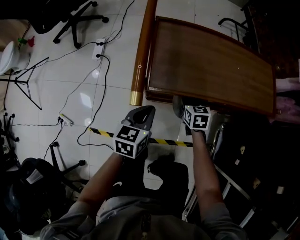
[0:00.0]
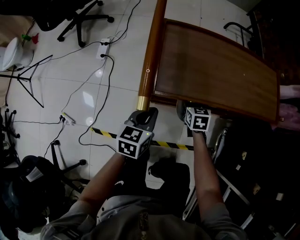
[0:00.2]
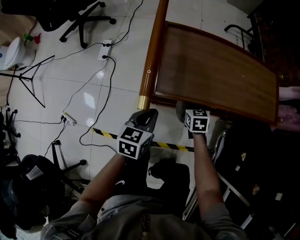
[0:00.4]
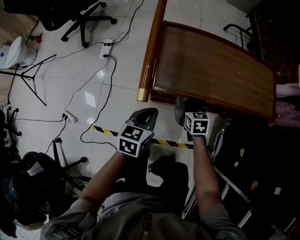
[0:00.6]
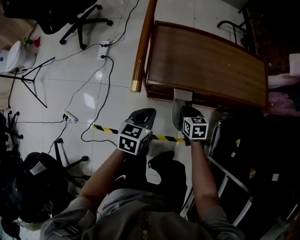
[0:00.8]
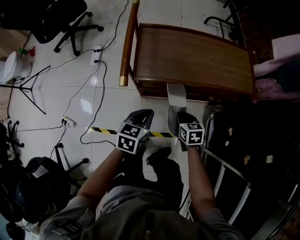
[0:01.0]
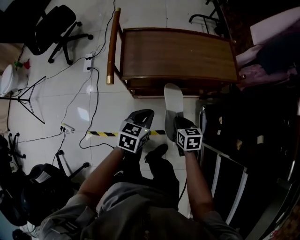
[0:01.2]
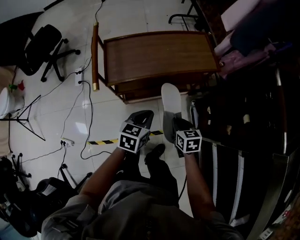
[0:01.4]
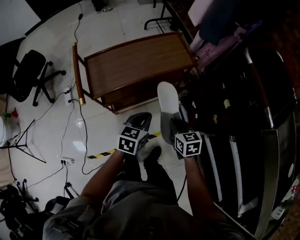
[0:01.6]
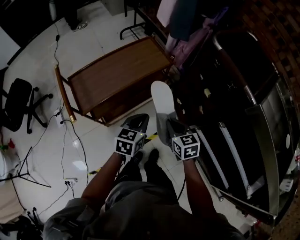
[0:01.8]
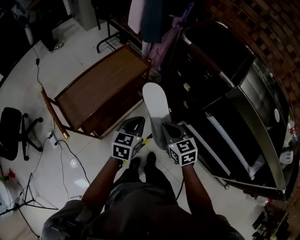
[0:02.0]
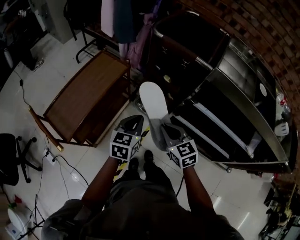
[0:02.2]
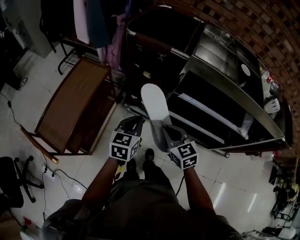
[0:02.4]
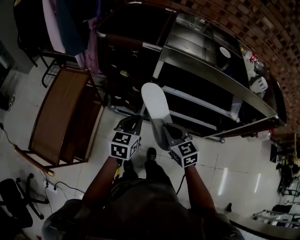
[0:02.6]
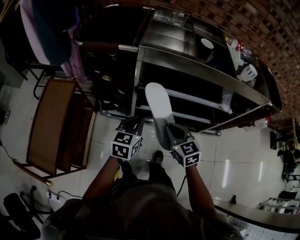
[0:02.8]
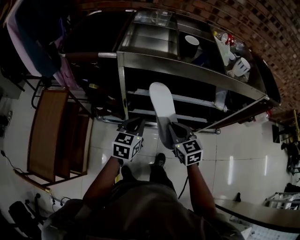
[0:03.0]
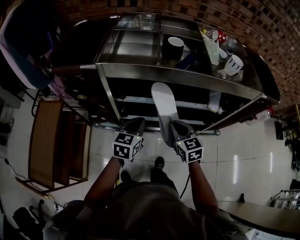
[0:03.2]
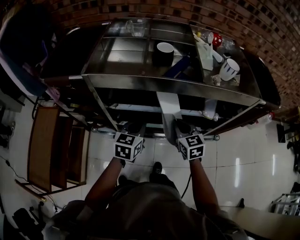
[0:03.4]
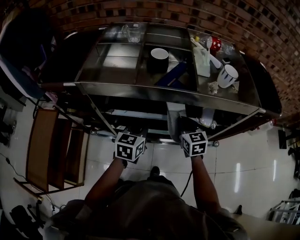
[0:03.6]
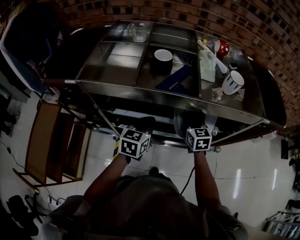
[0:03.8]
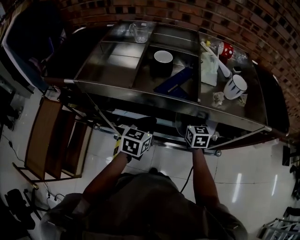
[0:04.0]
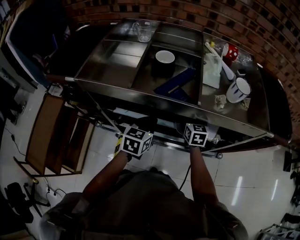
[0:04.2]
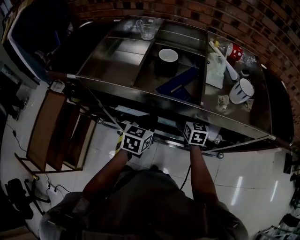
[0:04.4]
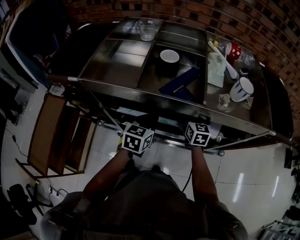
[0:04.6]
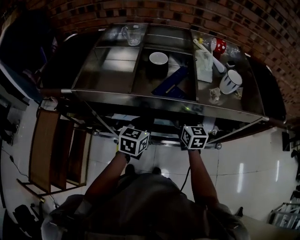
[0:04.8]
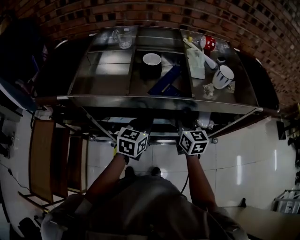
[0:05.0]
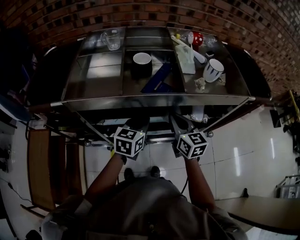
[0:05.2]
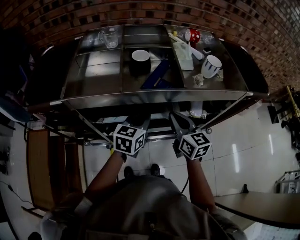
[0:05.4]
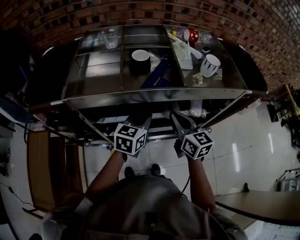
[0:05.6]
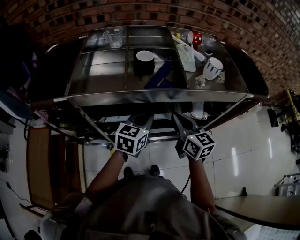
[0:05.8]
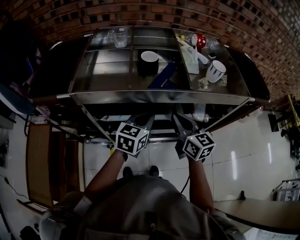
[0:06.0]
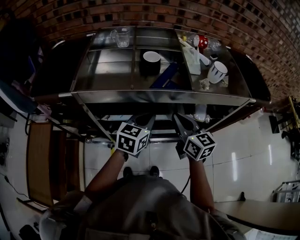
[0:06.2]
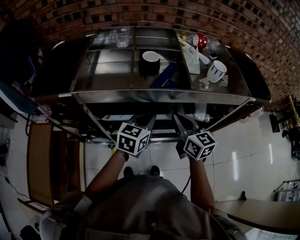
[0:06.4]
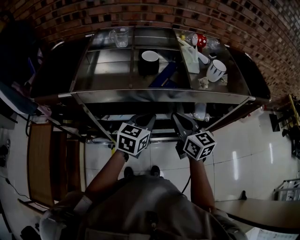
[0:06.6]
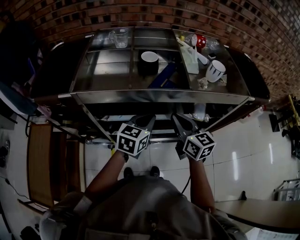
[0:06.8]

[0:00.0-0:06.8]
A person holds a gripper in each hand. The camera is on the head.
0:00.0 to 0:01.4: The right gripper heads backward, upward and to the right, covering roughly 35 cm, and closes its fingers. The left gripper heads to the right, upward and backward, covering approximately 25 cm, and changes its angle by about 20 degrees.
0:01.4 to 0:02.8: The left gripper ends up approximately 40 cm from where it was, and changes its angle by approximately 70 degrees. The right gripper ends up some 40 cm from where it was, and rotates some 60 degrees.
0:02.8 to 0:04.0: Both grippers move to the right and forward, roughly 35 cm.
0:04.0 to 0:05.4: The right gripper goes about 15 cm upward, backward and to the left.
0:05.4 to 0:06.8: The grippers make only small movements.

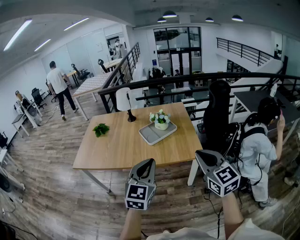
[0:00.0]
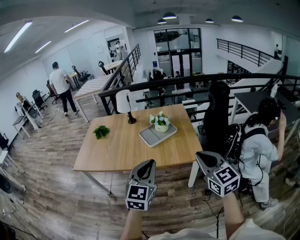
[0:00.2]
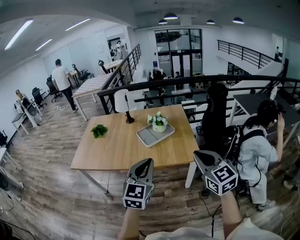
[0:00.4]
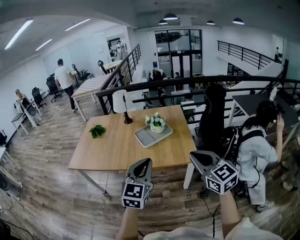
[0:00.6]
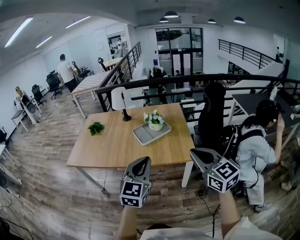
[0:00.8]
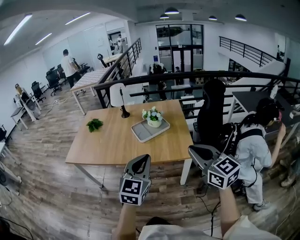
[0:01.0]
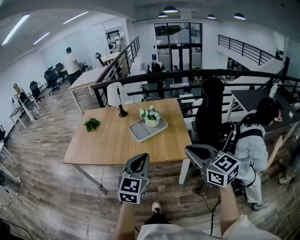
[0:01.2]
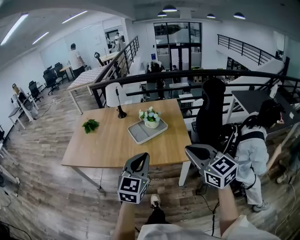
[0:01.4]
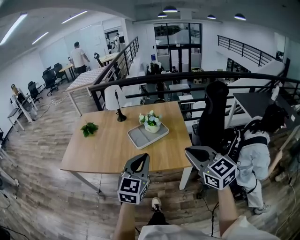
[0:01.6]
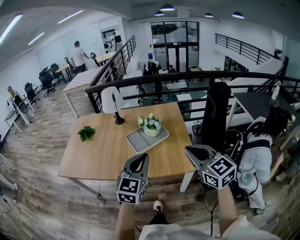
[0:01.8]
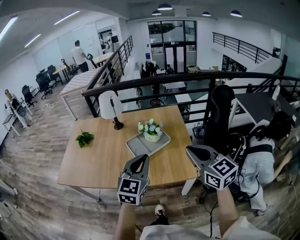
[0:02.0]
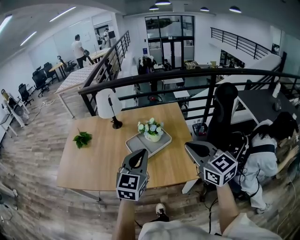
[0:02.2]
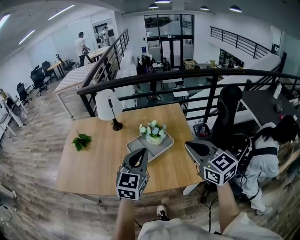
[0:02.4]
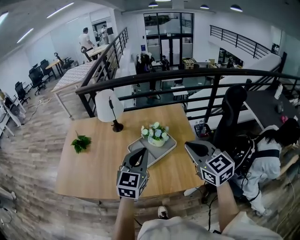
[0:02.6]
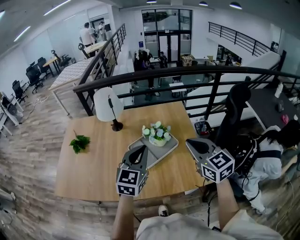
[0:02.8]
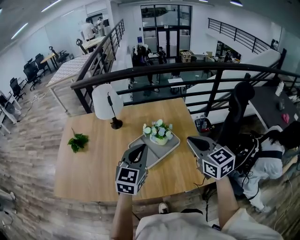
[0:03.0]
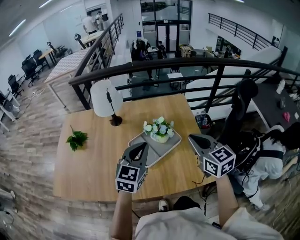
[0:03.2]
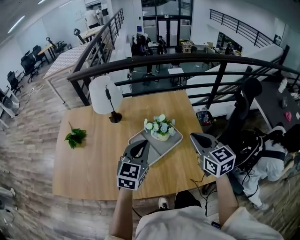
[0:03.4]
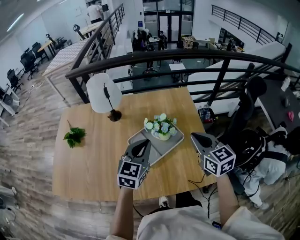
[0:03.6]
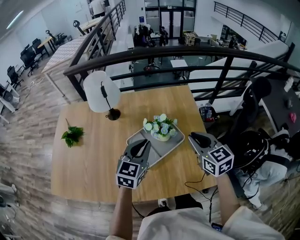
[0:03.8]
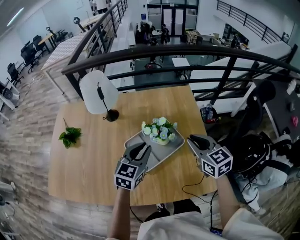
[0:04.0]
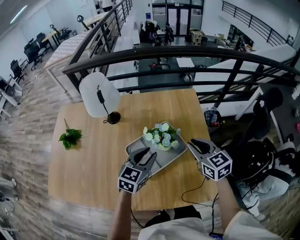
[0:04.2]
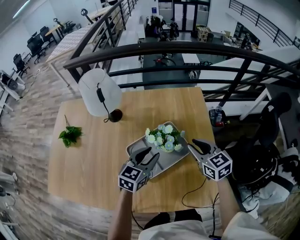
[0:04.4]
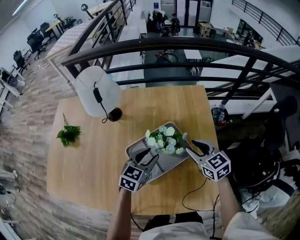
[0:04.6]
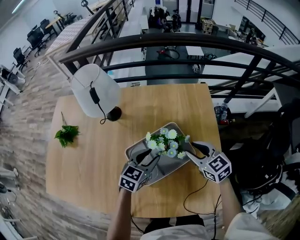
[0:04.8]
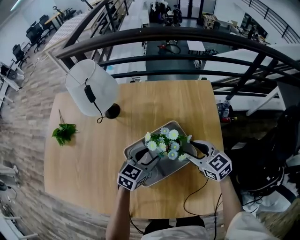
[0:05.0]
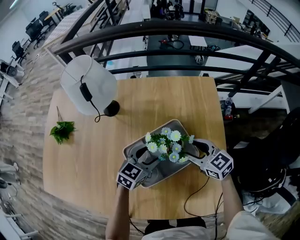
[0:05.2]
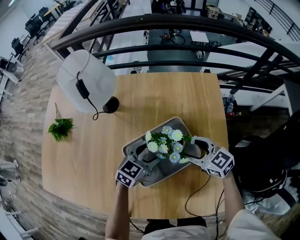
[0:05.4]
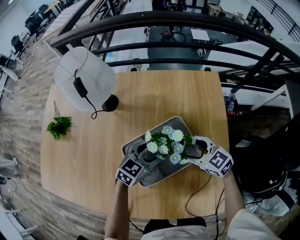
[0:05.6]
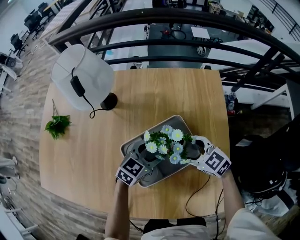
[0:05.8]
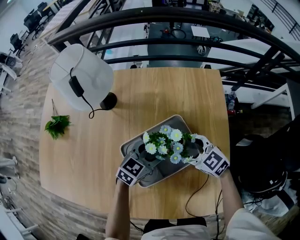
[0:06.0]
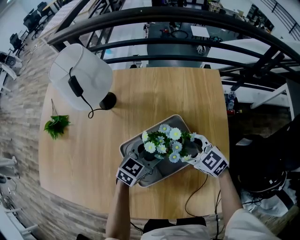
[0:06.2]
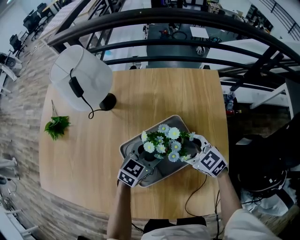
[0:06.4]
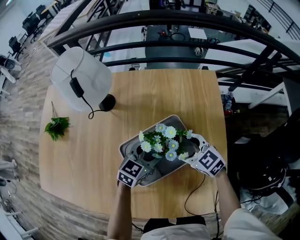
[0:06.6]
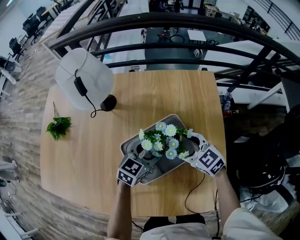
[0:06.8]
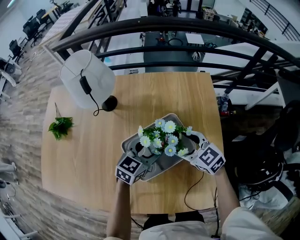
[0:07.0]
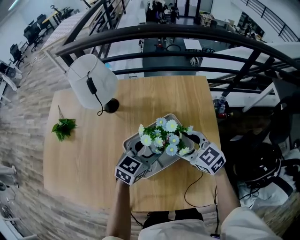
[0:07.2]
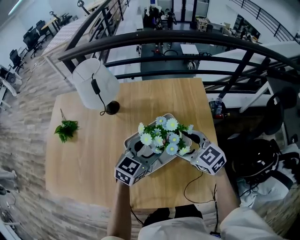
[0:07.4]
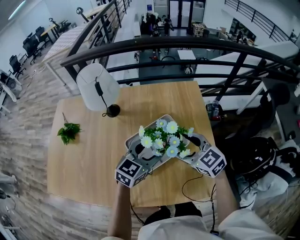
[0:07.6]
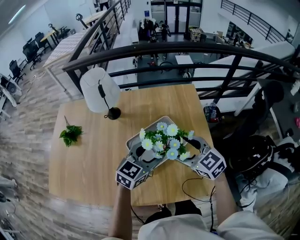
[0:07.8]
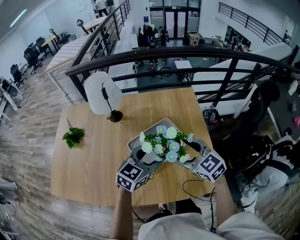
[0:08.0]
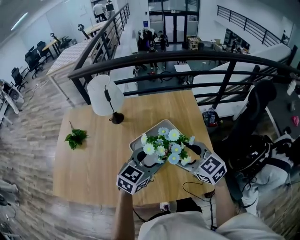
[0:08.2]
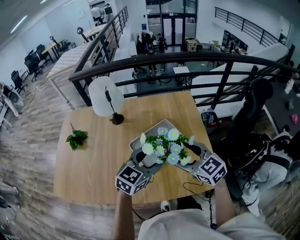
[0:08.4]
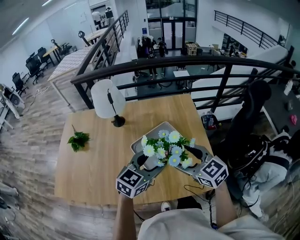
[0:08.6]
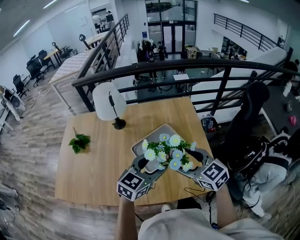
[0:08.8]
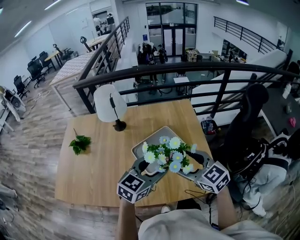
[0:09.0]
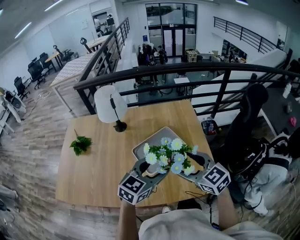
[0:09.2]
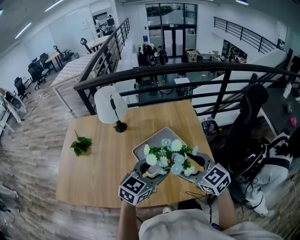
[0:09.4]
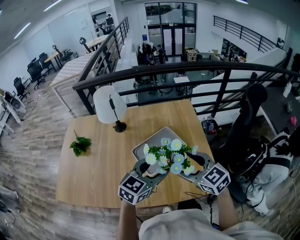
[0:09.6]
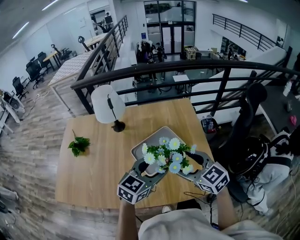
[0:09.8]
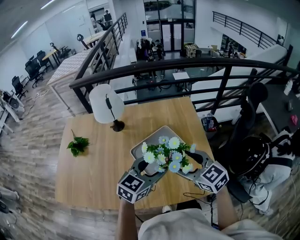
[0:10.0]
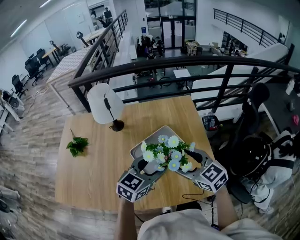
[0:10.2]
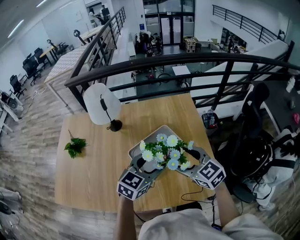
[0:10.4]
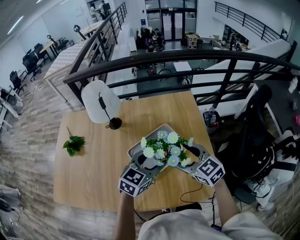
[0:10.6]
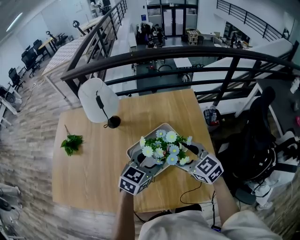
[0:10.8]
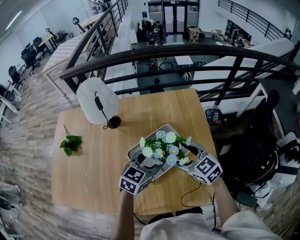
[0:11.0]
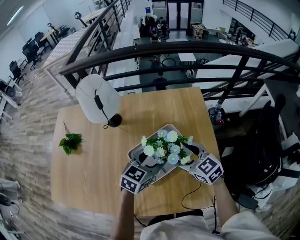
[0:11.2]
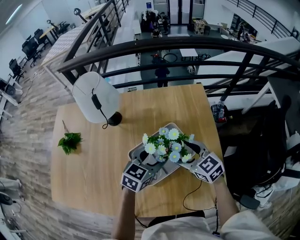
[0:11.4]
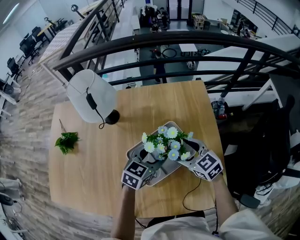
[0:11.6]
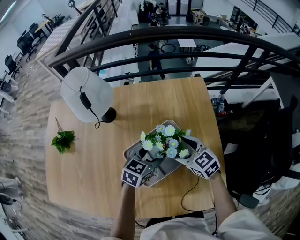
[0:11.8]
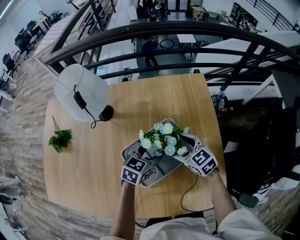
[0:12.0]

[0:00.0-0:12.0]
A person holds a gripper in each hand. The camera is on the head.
0:00.0 to 0:01.6: The left gripper heads forward and to the right, covering some 10 cm, while the right gripper is displaced forward by approximately 10 cm.
0:01.6 to 0:03.0: The two grippers go about 30 cm forward.
0:03.0 to 0:04.4: The two grippers go approximately 25 cm downward and forward. The left gripper swivels about 20 degrees, and opens up.
0:04.4 to 0:06.0: The right gripper travels downward and to the left by some 15 cm, changes its angle by roughly 30 degrees, and opens its fingers, while the left gripper travels downward and forward by roughly 15 cm, and opens its fingers.
0:06.0 to 0:07.6: The grippers both shift upward and backward by roughly 20 cm.
0:07.6 to 0:09.0: The grippers both shift backward and upward by approximately 15 cm.
0:09.0 to 0:10.4: Both grippers travel together forward, some 10 cm.
0:10.4 to 0:12.0: Both grippers move downward and forward, roughly 25 cm.

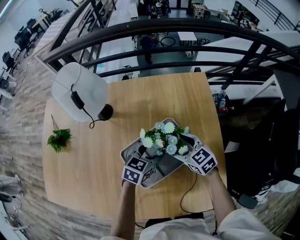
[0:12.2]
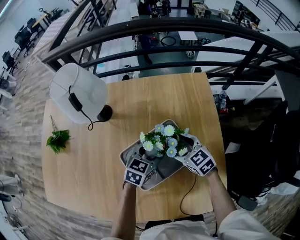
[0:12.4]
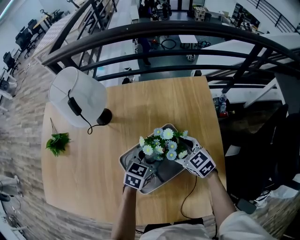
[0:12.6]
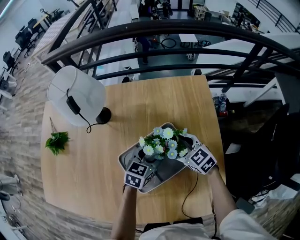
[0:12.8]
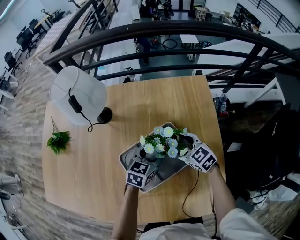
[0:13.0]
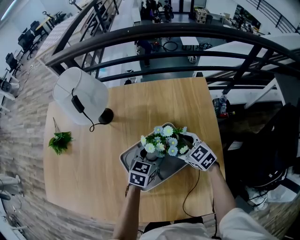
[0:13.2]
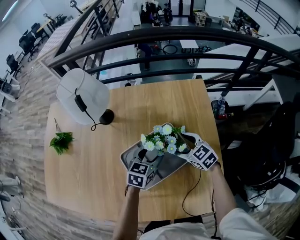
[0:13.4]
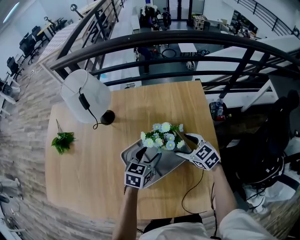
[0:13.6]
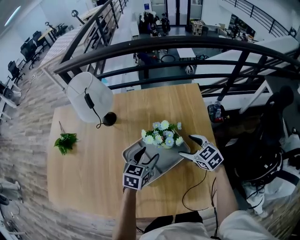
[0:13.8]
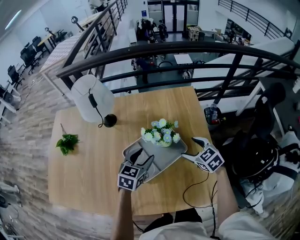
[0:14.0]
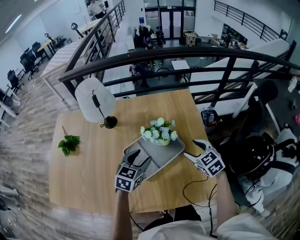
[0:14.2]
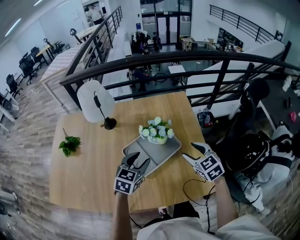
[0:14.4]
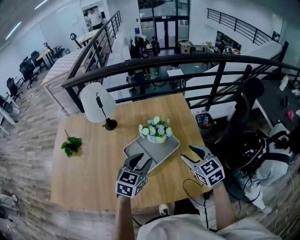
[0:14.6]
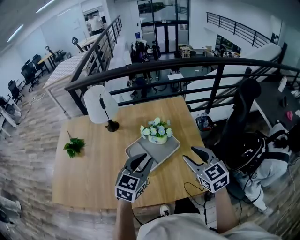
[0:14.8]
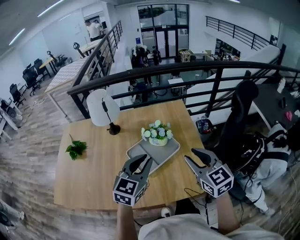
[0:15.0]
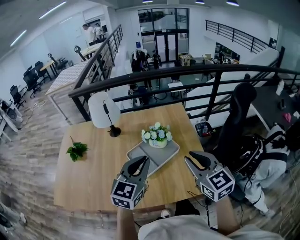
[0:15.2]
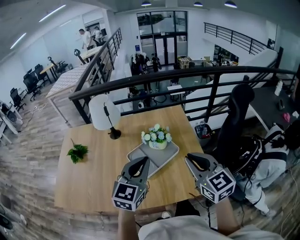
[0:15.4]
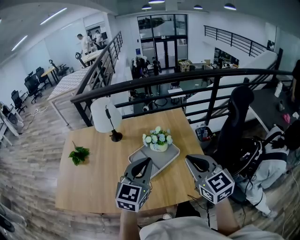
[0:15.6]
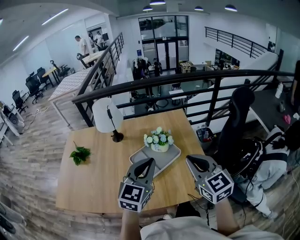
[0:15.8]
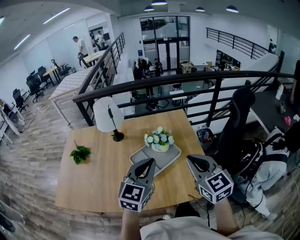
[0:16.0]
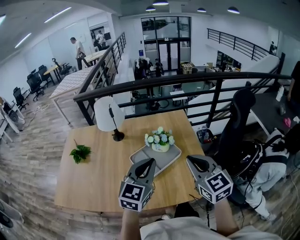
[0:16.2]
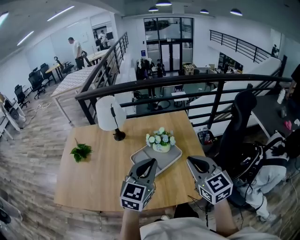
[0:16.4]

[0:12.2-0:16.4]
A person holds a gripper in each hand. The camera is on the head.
0:12.2 to 0:13.6: The grippers move only a little.
0:13.6 to 0:15.0: The two grippers go some 35 cm upward and backward. The left gripper swivels some 30 degrees, and closes; the right gripper changes its angle by approximately 30 degrees, and closes its fingers.
0:15.0 to 0:16.4: The left gripper moves about 5 cm; the right gripper changes place by approximately 5 cm, and closes.
